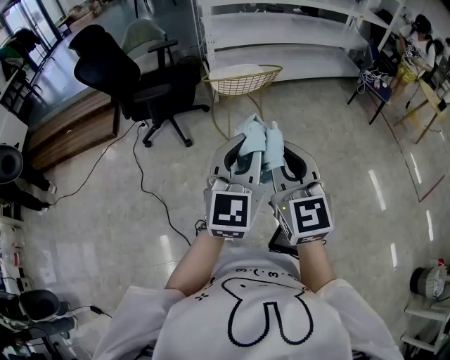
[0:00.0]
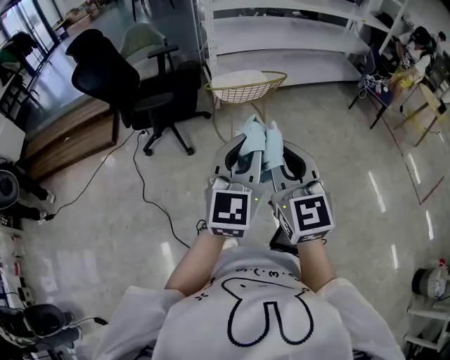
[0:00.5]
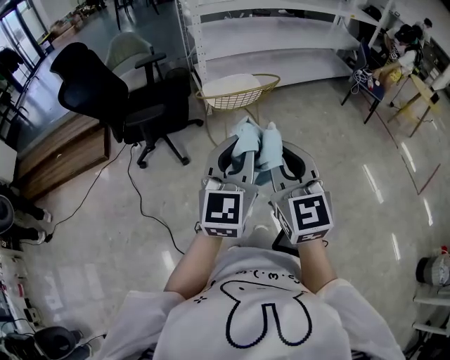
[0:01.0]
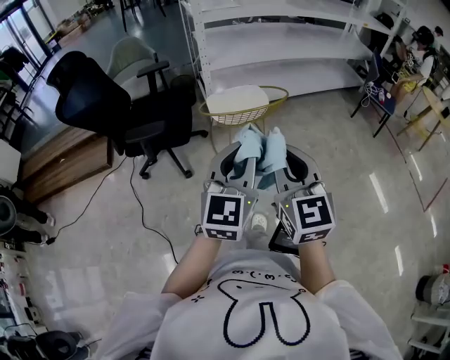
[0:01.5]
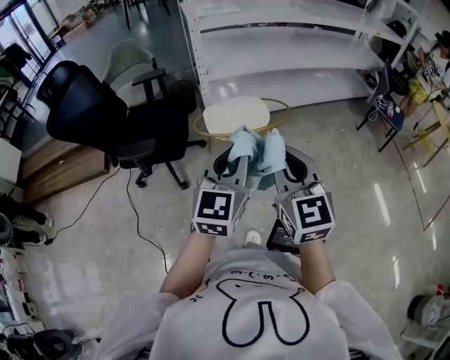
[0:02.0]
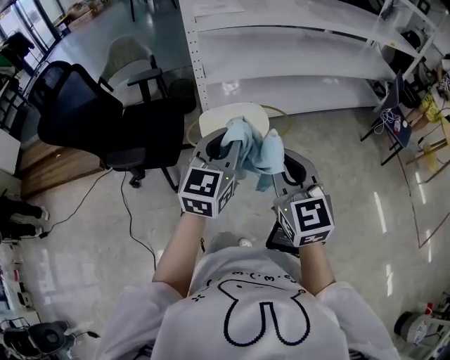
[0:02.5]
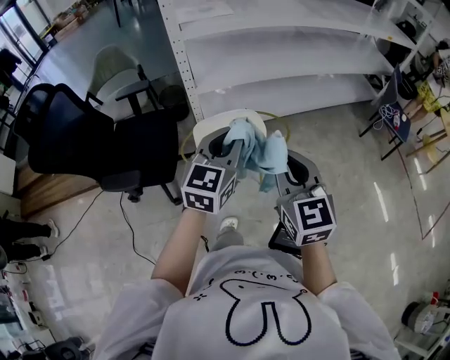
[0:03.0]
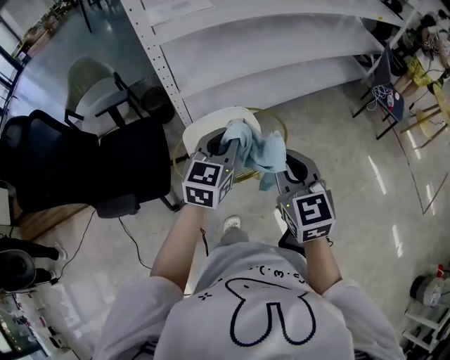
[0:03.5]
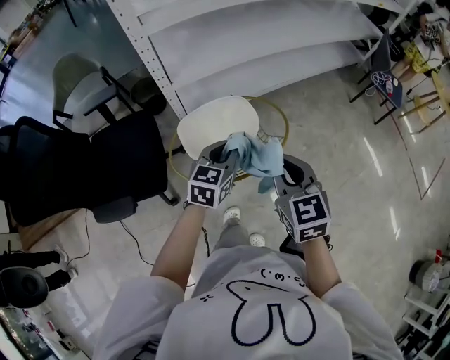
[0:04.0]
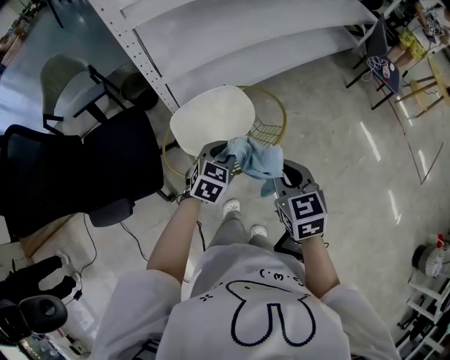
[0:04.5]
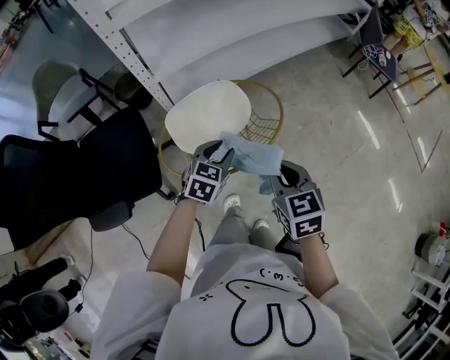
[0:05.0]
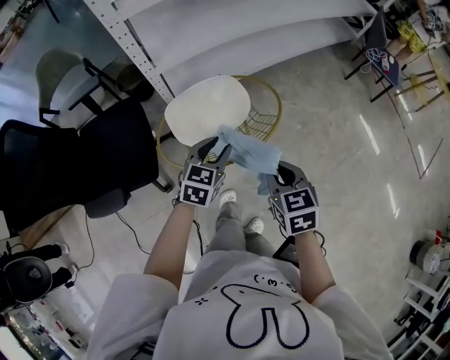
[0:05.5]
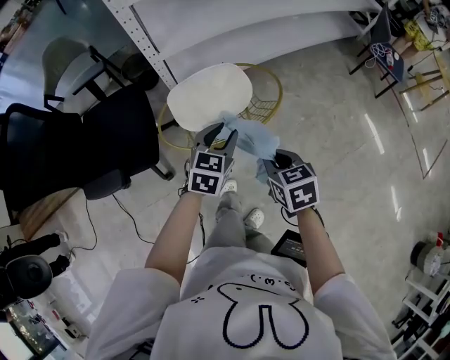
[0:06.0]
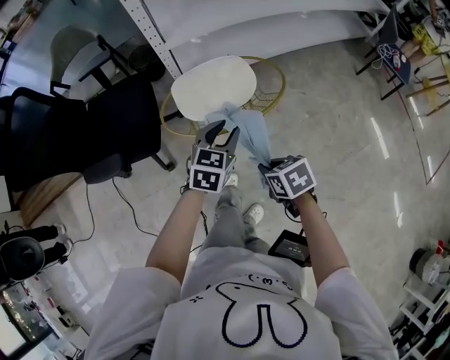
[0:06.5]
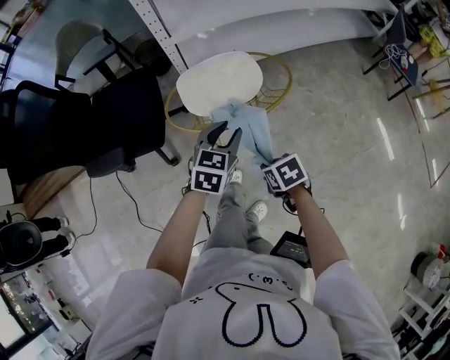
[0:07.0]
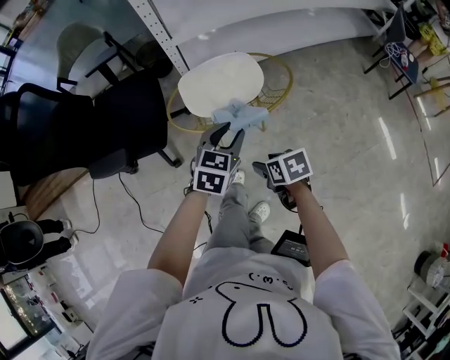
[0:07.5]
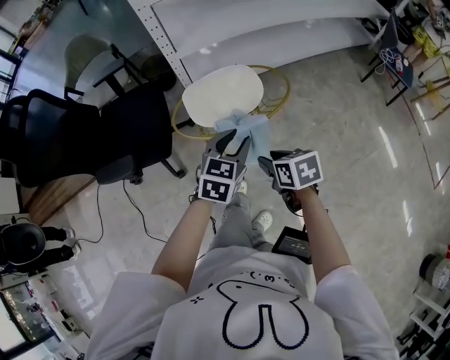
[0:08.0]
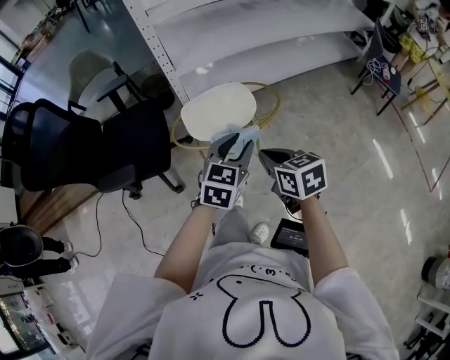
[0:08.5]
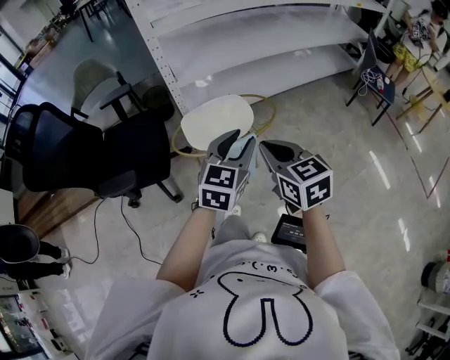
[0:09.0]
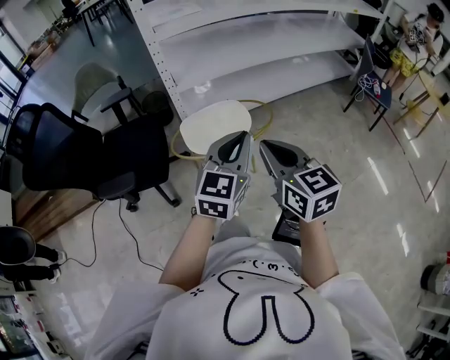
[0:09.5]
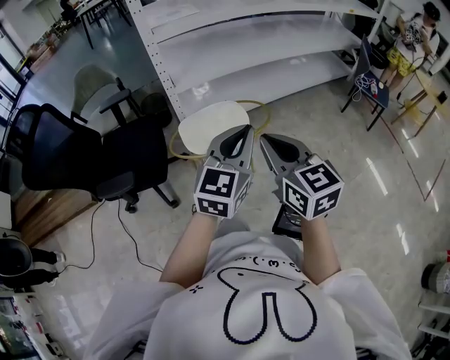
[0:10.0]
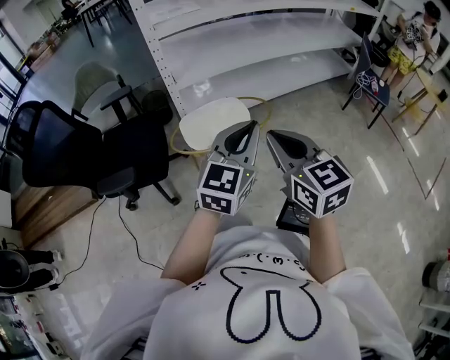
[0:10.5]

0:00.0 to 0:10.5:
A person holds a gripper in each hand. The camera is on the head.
0:00.0 to 0:02.0: Both grippers travel together forward, approximately 35 cm.
0:02.0 to 0:04.0: Both grippers move forward and downward, some 35 cm. The right gripper turns by some 20 degrees, while the left gripper changes its angle by about 30 degrees.
0:04.0 to 0:06.5: The left gripper moves some 10 cm, and opens; the right gripper goes approximately 20 cm downward, and tilts its fingers about 30 degrees downward.
0:06.5 to 0:08.5: The right gripper goes roughly 15 cm upward, changes its angle by roughly 30 degrees, and opens, then closes once more. The left gripper shifts about 10 cm upward and backward.
0:08.5 to 0:10.5: Both grippers travel together upward, approximately 15 cm. The right gripper swivels roughly 30 degrees. The left gripper swivels some 20 degrees, and closes up.

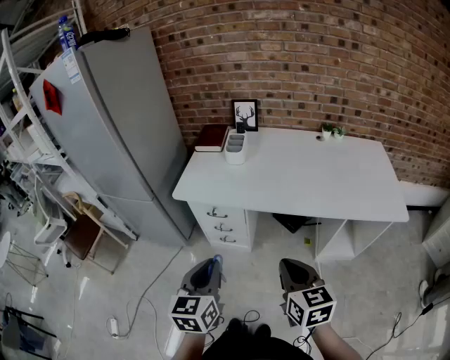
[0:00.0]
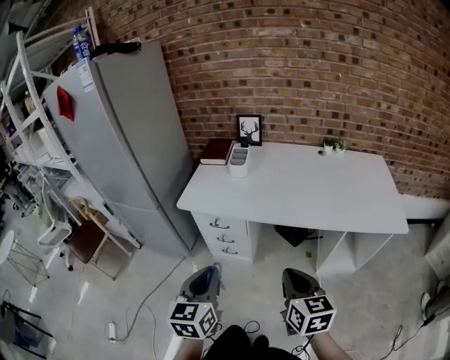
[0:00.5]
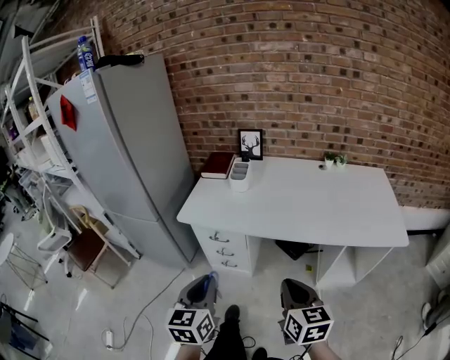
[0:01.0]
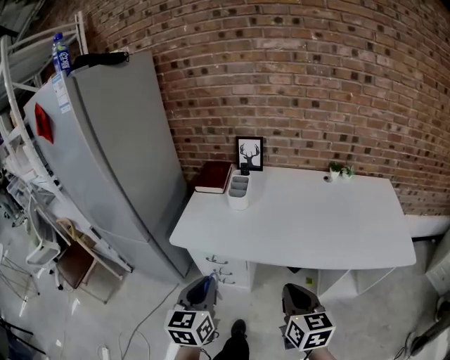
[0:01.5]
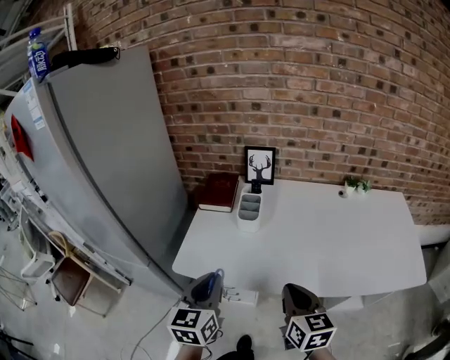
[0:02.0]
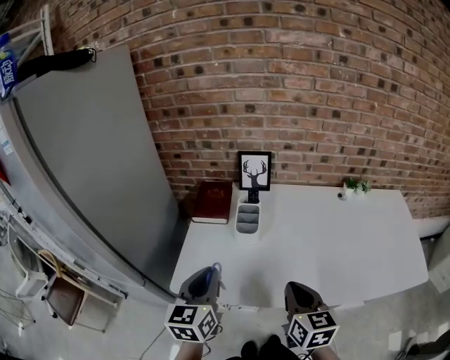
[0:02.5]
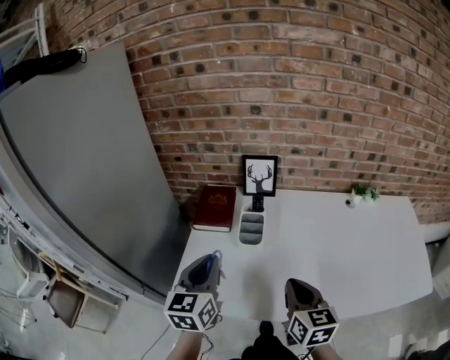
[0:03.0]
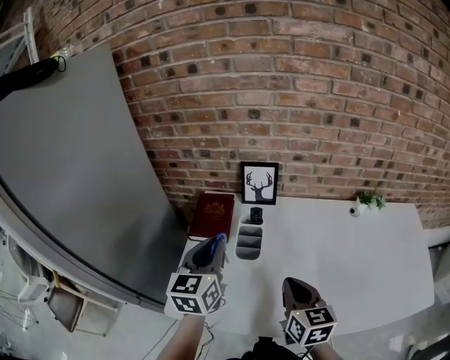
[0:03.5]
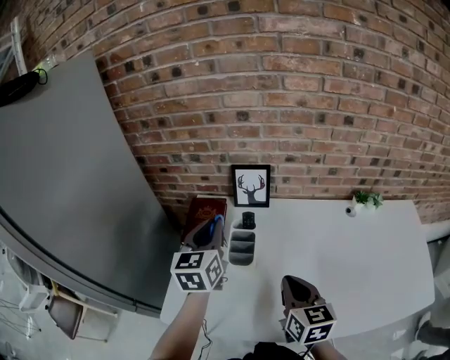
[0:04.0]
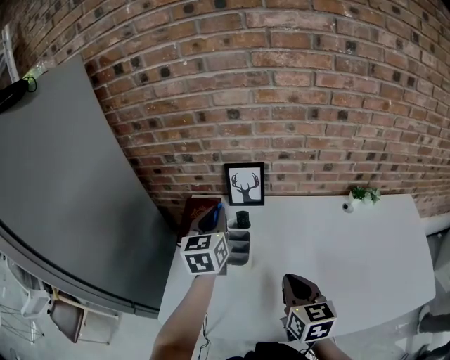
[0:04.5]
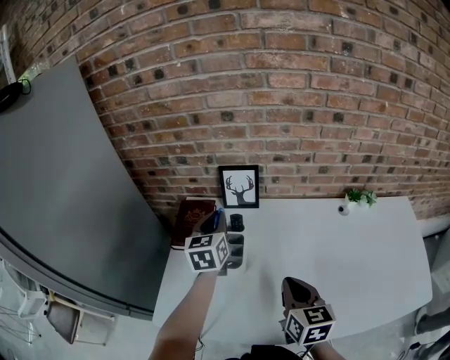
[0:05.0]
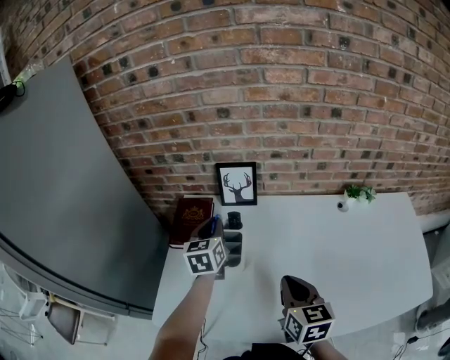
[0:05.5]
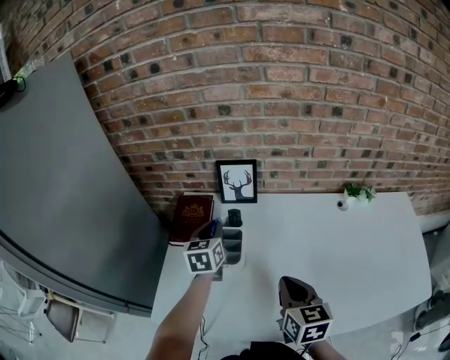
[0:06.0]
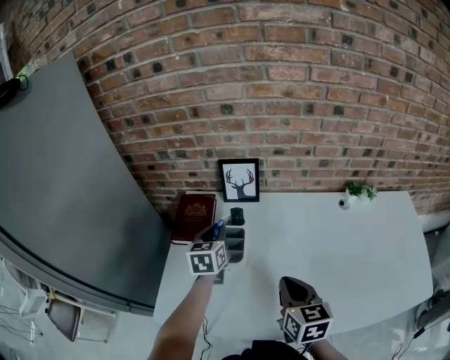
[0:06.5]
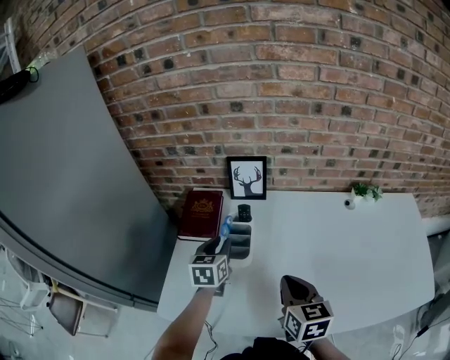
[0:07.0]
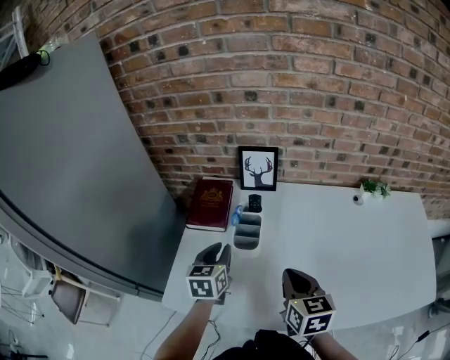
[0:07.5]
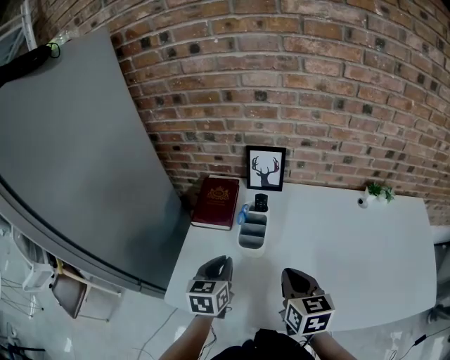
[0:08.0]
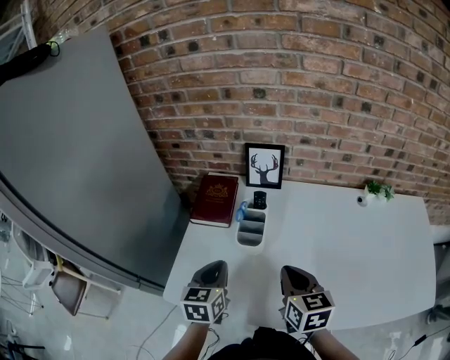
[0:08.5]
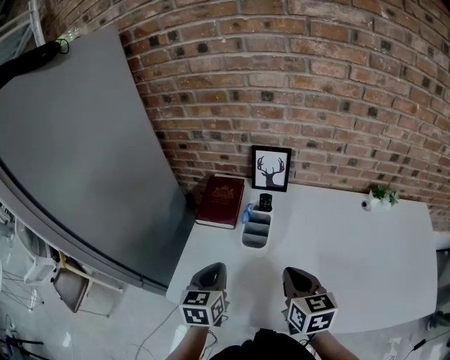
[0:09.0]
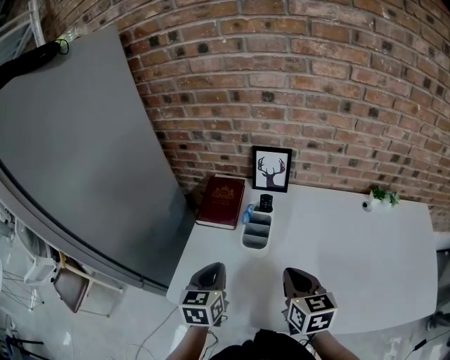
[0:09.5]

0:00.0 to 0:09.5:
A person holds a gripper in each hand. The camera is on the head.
0:00.0 to 0:02.0: The two grippers go roughly 25 cm forward.
0:02.0 to 0:04.0: The left gripper travels forward by about 35 cm, while the right gripper heads forward, covering about 25 cm.
0:04.0 to 0:05.5: The left gripper heads downward and forward, covering approximately 10 cm.
0:05.5 to 0:07.5: The left gripper travels backward and downward by approximately 15 cm.
0:07.5 to 0:09.5: The left gripper shifts roughly 10 cm backward.

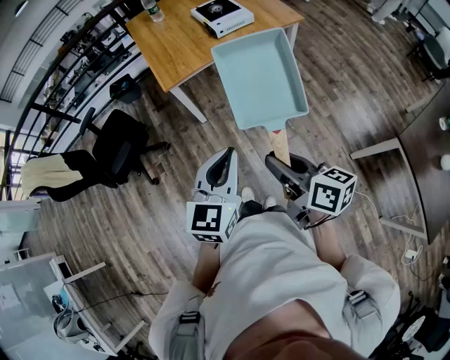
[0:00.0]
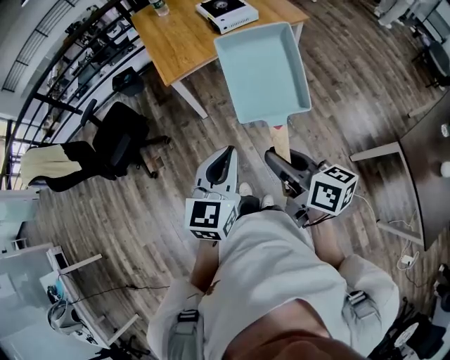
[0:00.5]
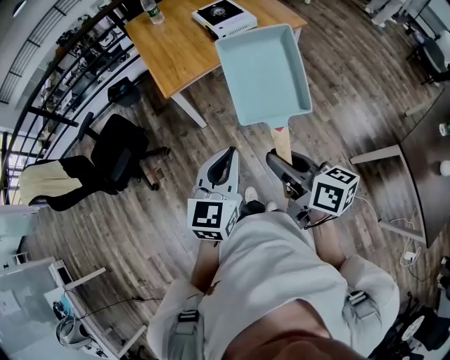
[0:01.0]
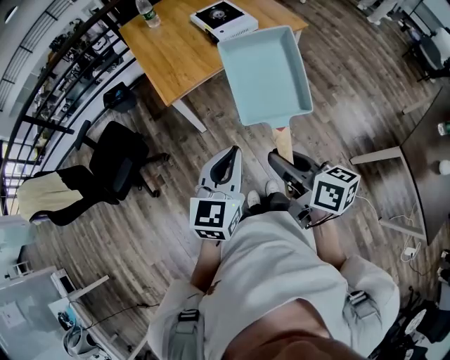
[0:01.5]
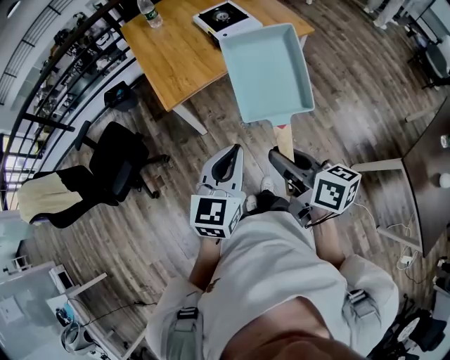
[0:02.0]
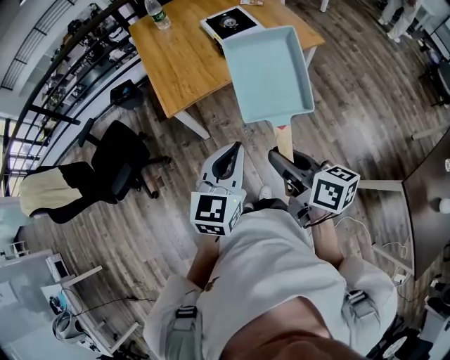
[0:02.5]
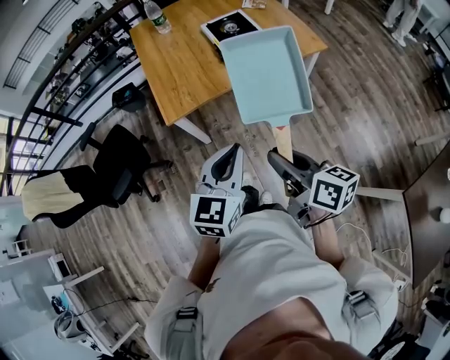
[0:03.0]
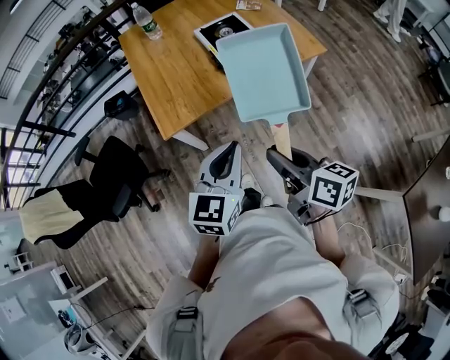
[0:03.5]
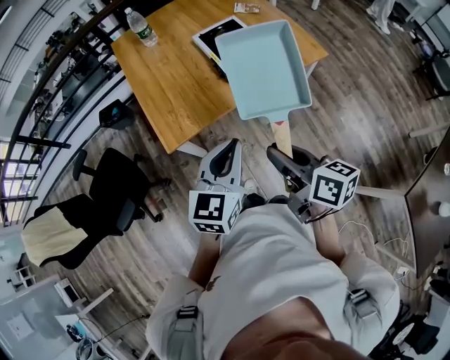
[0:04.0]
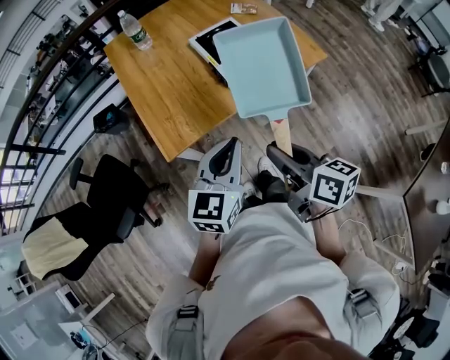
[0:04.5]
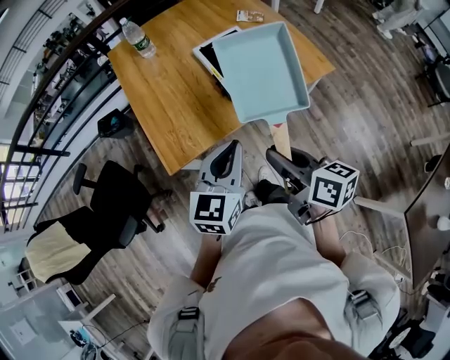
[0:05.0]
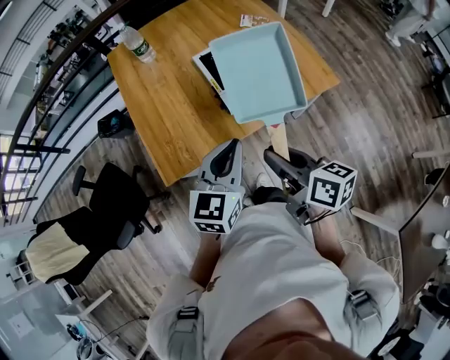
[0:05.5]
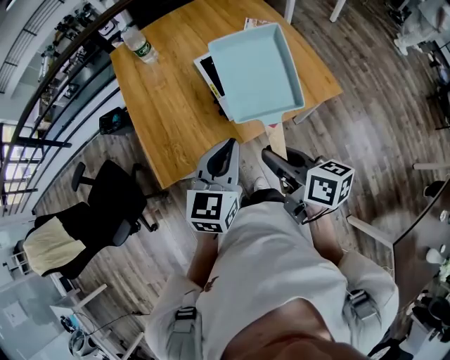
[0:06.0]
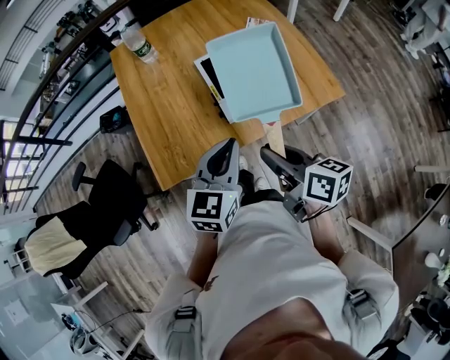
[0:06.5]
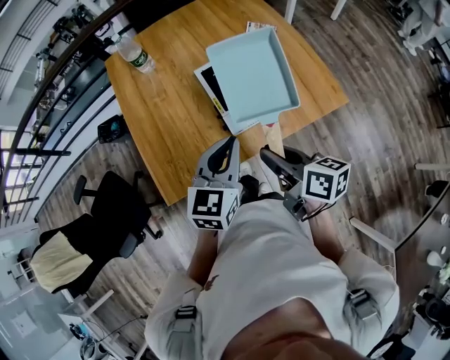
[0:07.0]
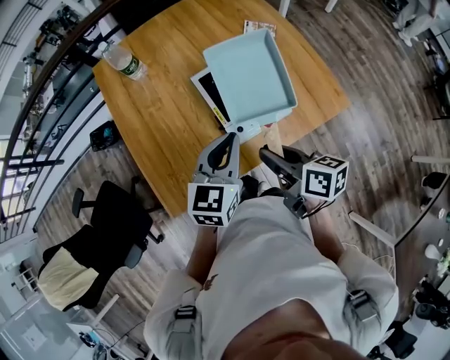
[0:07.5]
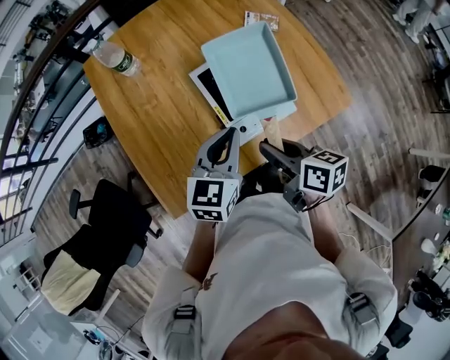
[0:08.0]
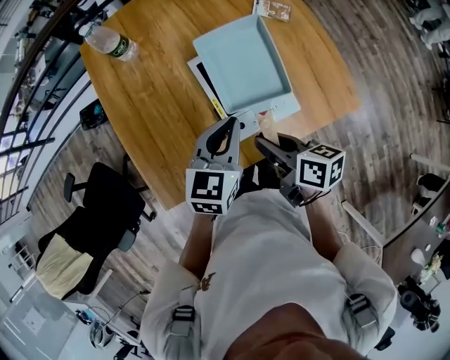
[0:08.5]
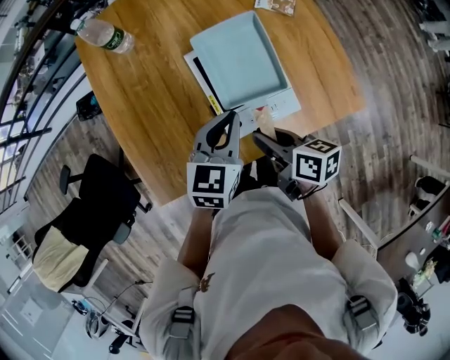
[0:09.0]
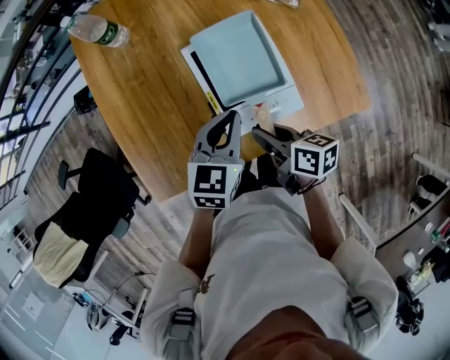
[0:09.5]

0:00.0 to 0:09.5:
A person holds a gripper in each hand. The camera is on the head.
0:00.0 to 0:02.0: The grippers both shift forward by approximately 15 cm.
0:02.0 to 0:04.0: The two grippers go some 25 cm forward.
0:04.0 to 0:05.5: The two grippers go approximately 15 cm forward.
0:05.5 to 0:07.5: Both grippers move forward, some 20 cm.
0:07.5 to 0:09.5: Both grippers travel together downward and forward, approximately 15 cm.
